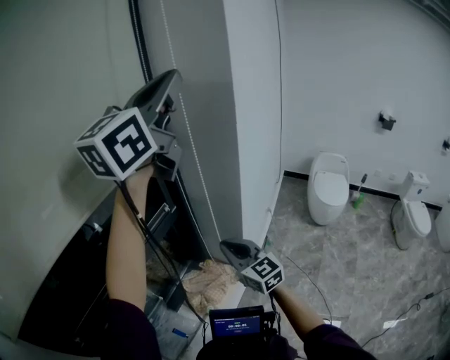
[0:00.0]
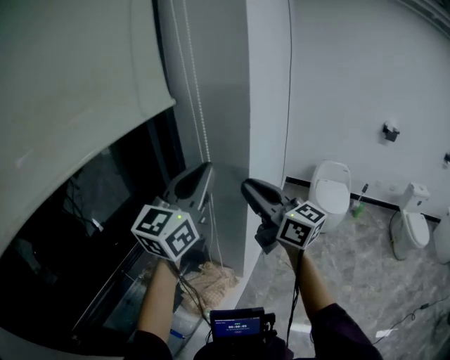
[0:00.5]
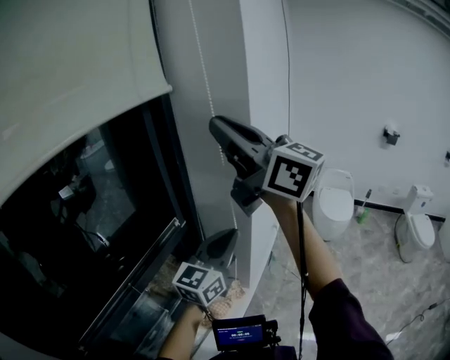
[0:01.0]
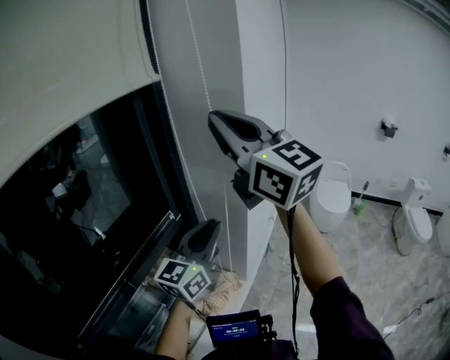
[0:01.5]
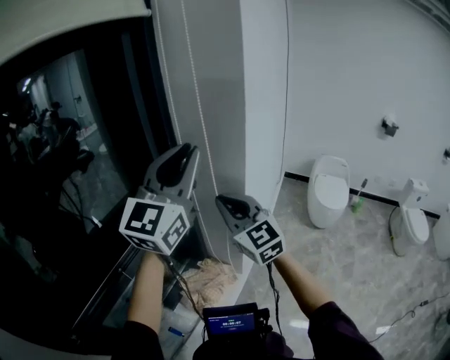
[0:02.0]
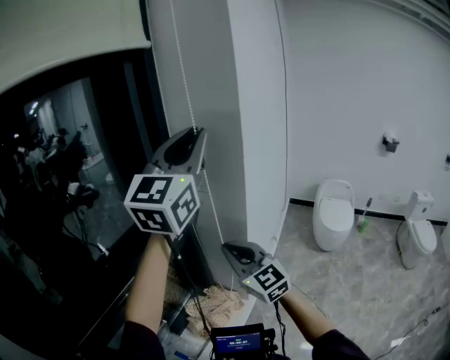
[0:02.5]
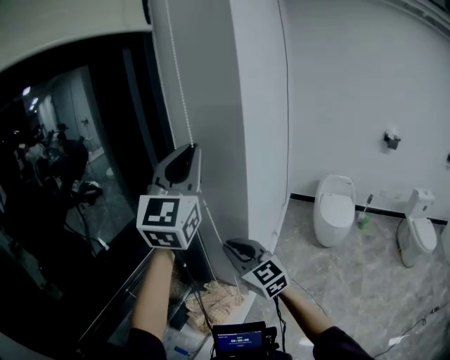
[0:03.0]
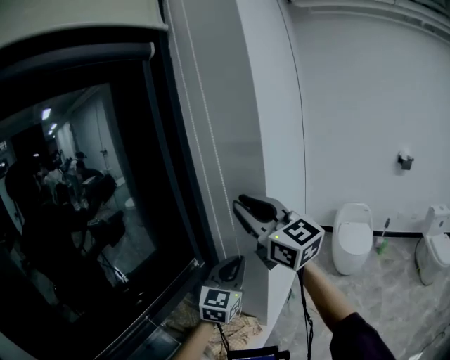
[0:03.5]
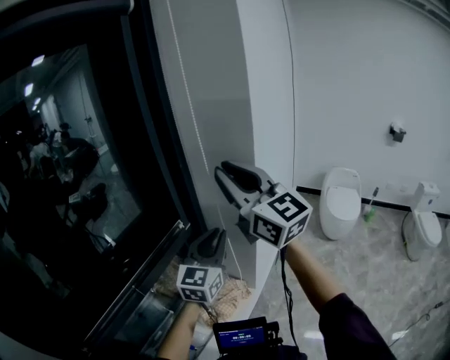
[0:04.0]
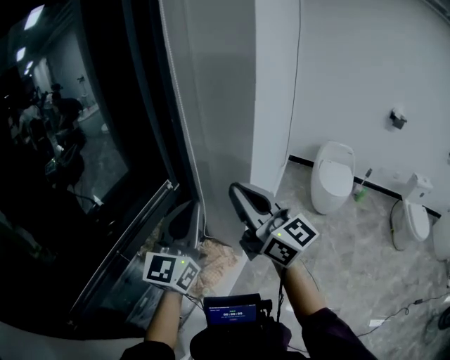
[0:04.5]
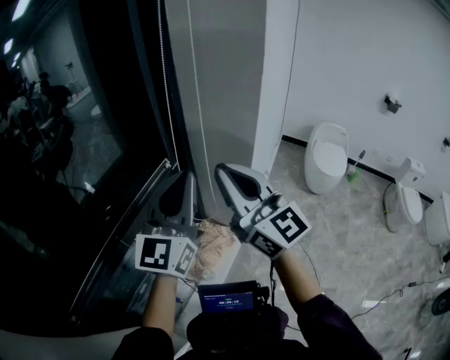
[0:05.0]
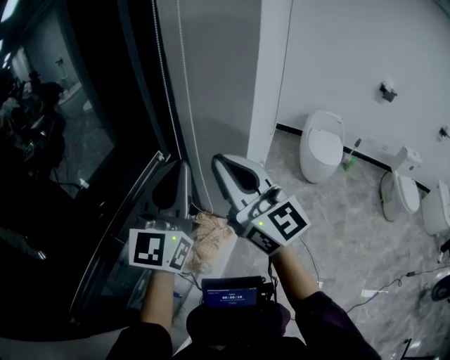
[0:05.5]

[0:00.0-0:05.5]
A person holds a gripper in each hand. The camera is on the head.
0:00.0 to 0:02.0: The right gripper travels forward by about 5 cm, and goes upward and returns, approximately 40 cm each way. The left gripper goes approximately 15 cm downward.
0:02.0 to 0:03.5: The left gripper goes some 20 cm downward, while the right gripper travels upward by roughly 15 cm.
0:03.5 to 0:05.5: The right gripper goes some 15 cm downward and backward, while the left gripper is displaced to the left and upward by approximately 10 cm.

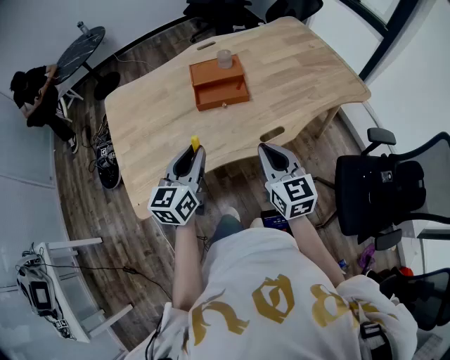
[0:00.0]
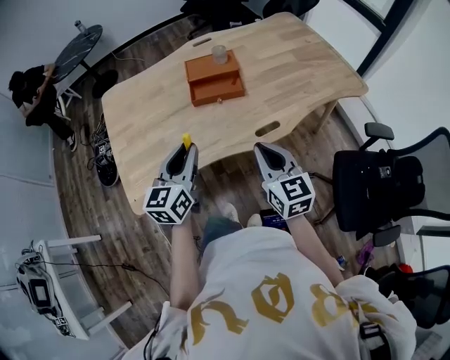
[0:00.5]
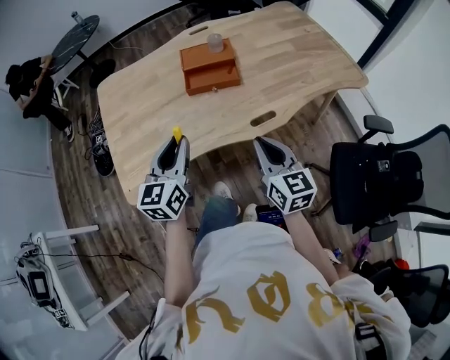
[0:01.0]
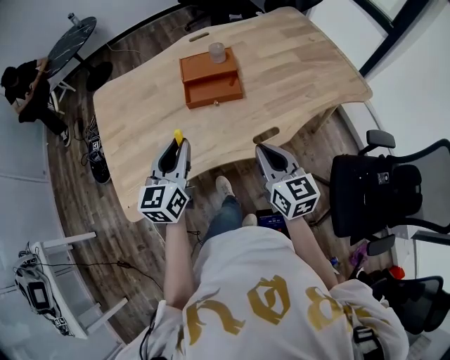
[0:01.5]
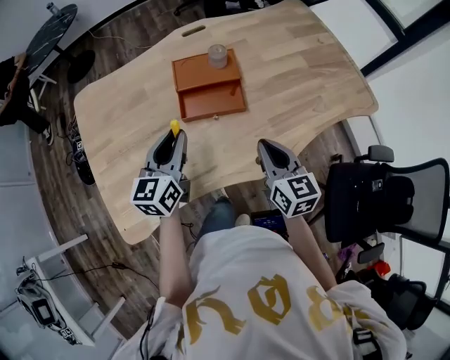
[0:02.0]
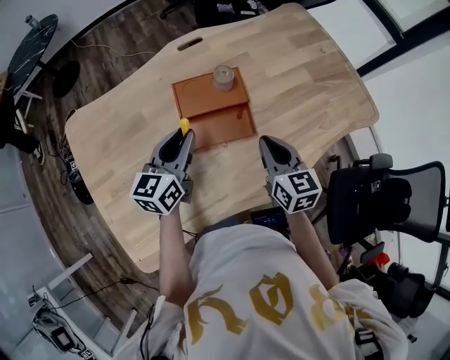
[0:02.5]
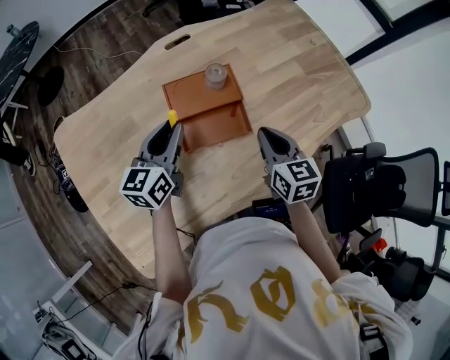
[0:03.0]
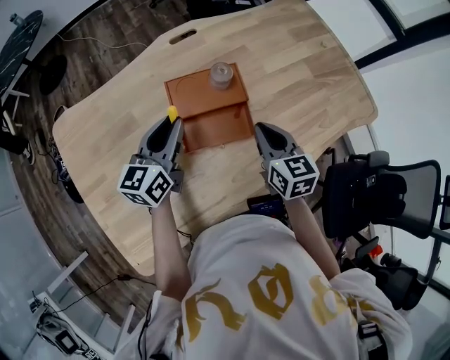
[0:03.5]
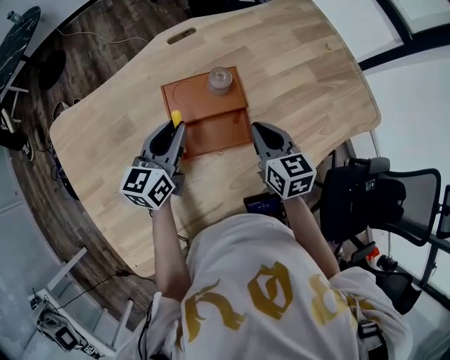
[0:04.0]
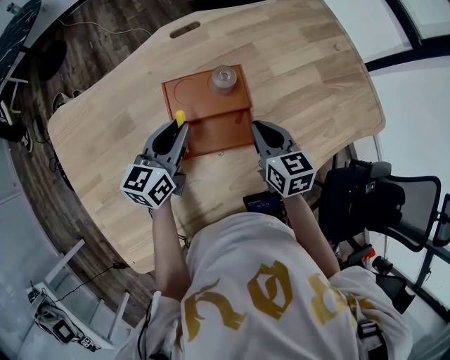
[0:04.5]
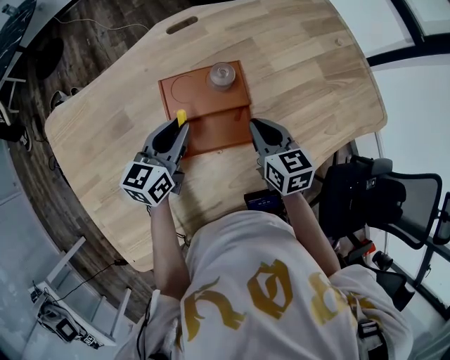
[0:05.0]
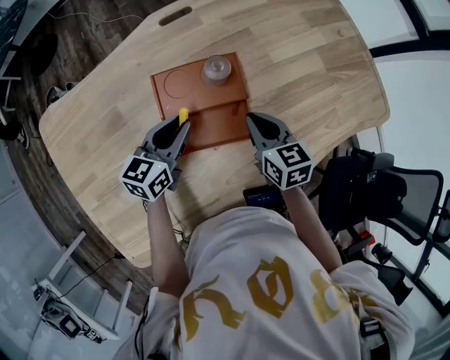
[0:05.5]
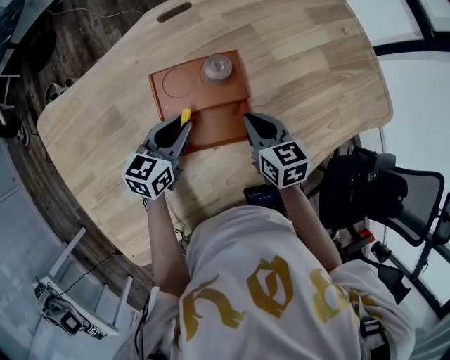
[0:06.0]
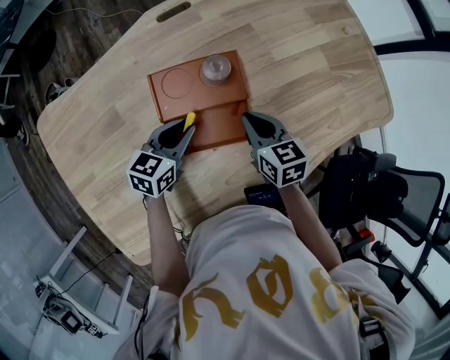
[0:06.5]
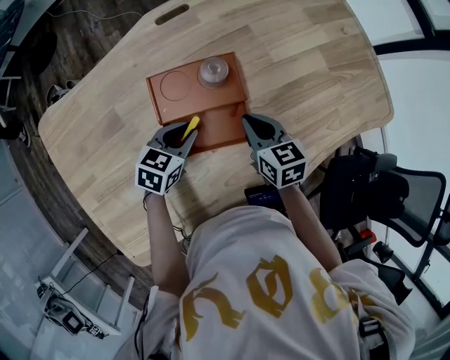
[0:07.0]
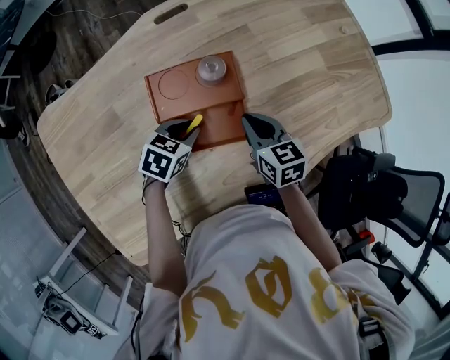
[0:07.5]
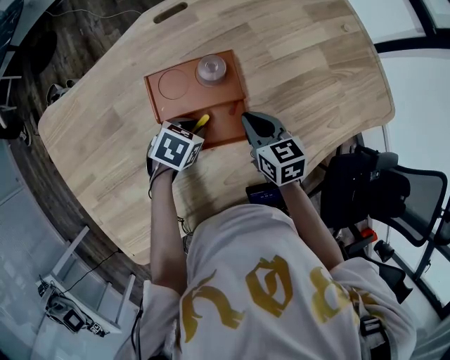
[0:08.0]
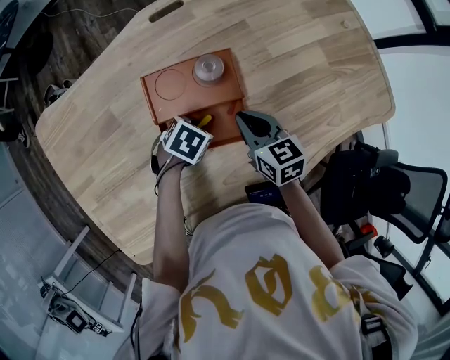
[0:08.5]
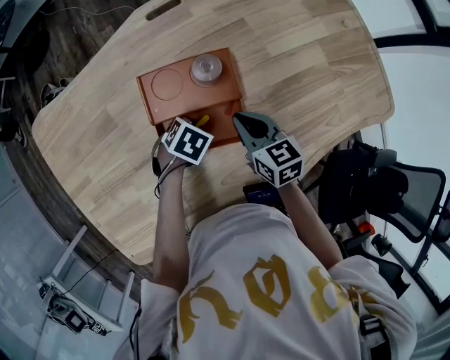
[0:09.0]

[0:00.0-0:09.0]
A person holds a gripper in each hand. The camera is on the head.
0:00.0 to 0:02.0: Both grippers travel together forward, approximately 20 cm.
0:02.0 to 0:04.5: Both grippers travel together forward, about 20 cm.
0:04.5 to 0:07.0: The right gripper goes about 5 cm downward. The left gripper shifts some 10 cm downward, and turns by about 40 degrees.
0:07.0 to 0:09.0: The left gripper travels downward by roughly 5 cm, and points its fingers roughly 30 degrees further downward.

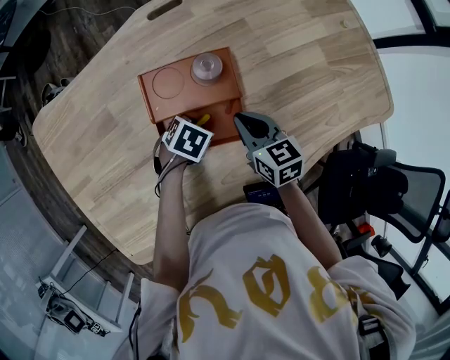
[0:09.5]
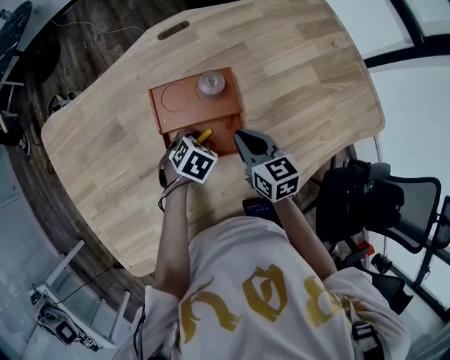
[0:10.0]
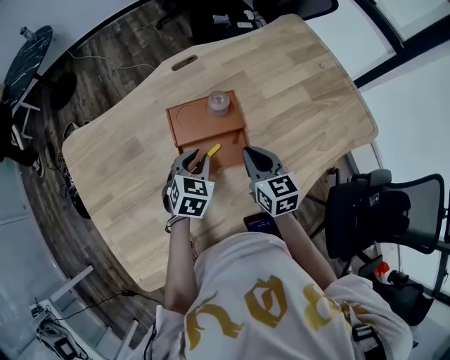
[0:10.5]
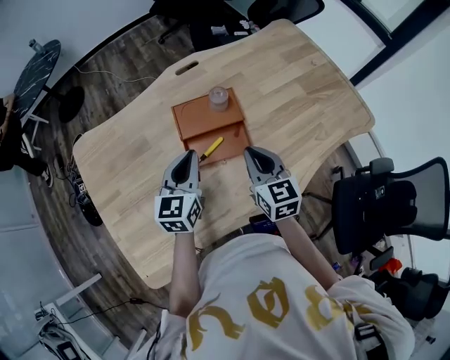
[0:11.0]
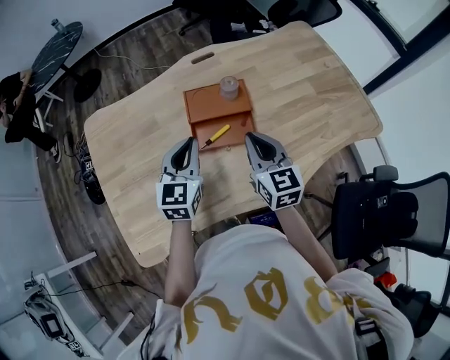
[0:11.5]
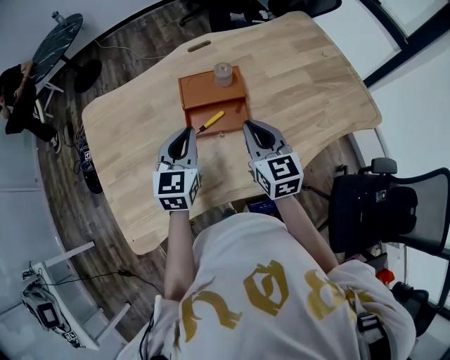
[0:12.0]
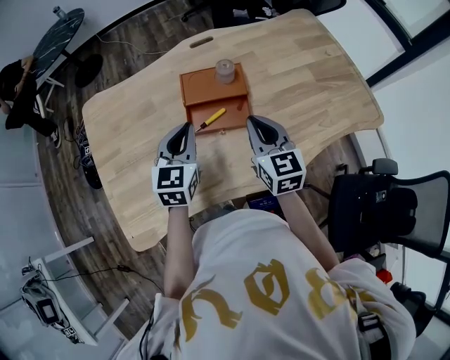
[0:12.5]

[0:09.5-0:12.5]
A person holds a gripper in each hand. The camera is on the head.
0:09.5 to 0:11.0: The left gripper shifts approximately 25 cm upward, and angles its fingers upward, by roughly 60 degrees, while the right gripper heads upward and backward, covering some 15 cm, and swivels about 20 degrees.
0:11.0 to 0:12.5: The grippers stay close to where they were, moving slightly.

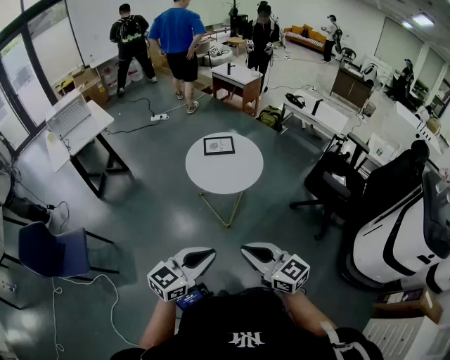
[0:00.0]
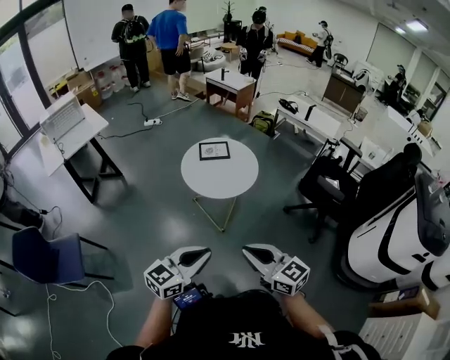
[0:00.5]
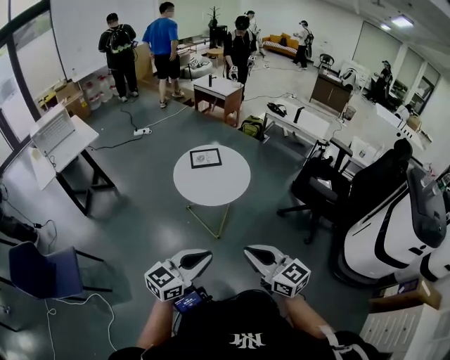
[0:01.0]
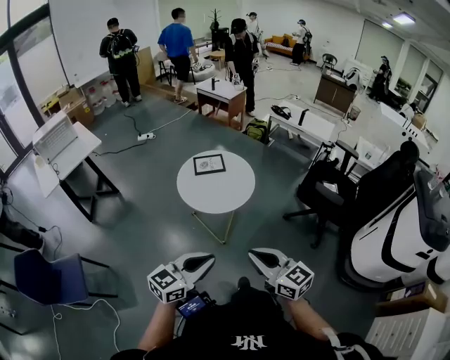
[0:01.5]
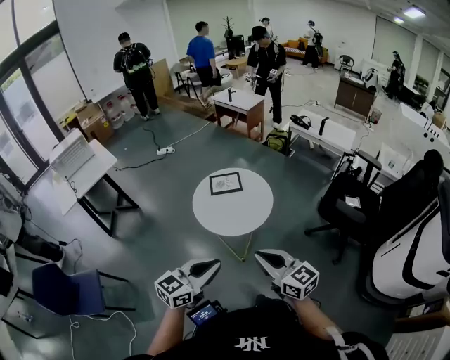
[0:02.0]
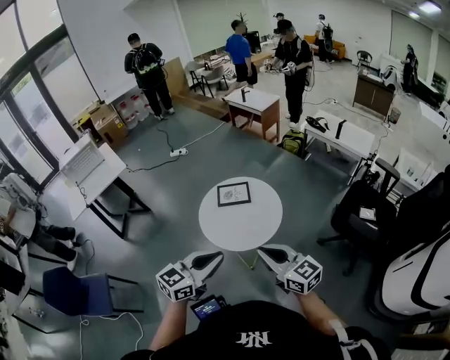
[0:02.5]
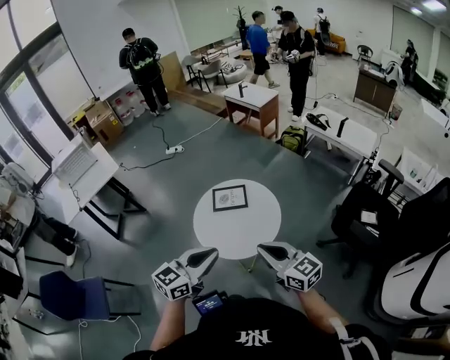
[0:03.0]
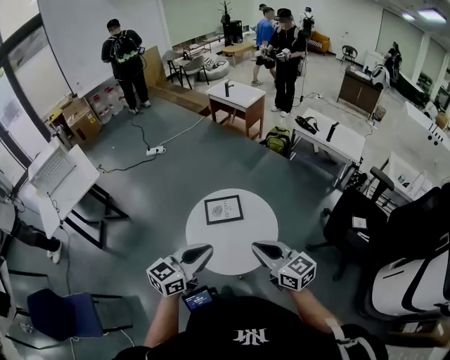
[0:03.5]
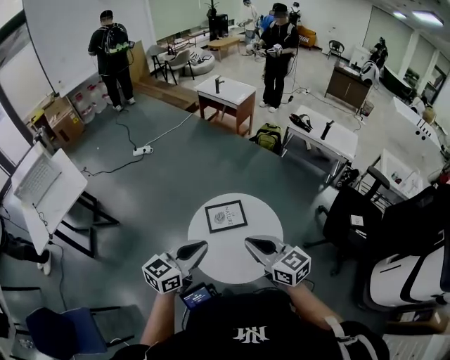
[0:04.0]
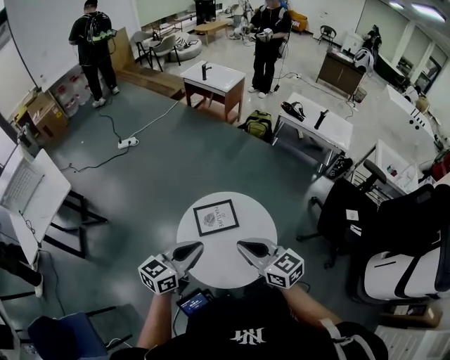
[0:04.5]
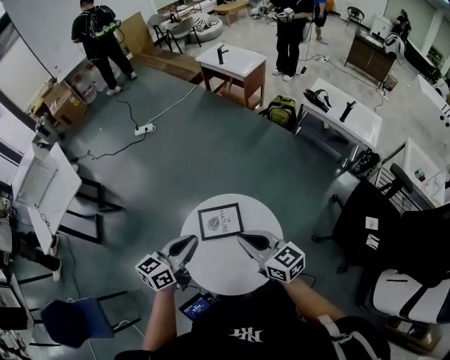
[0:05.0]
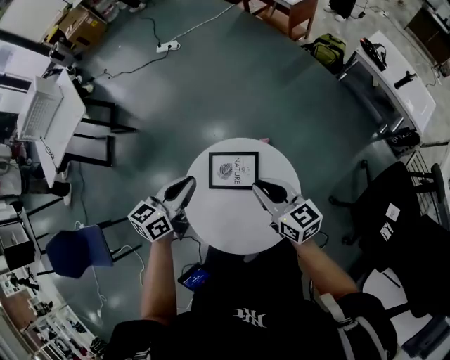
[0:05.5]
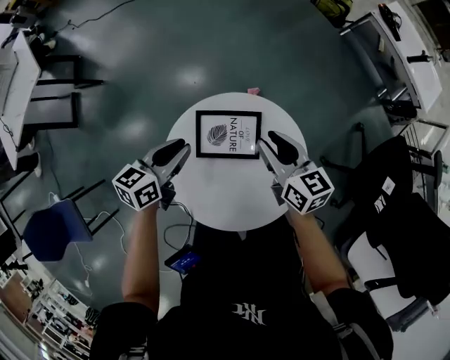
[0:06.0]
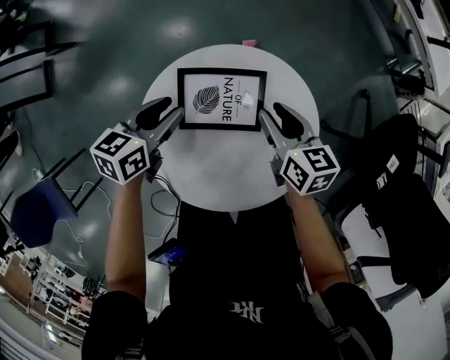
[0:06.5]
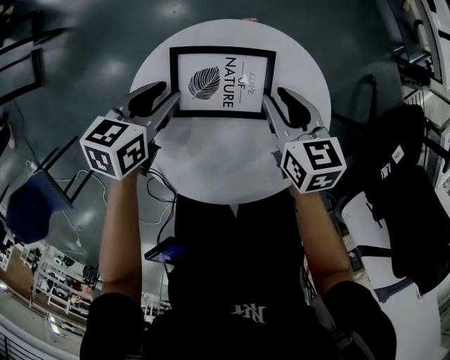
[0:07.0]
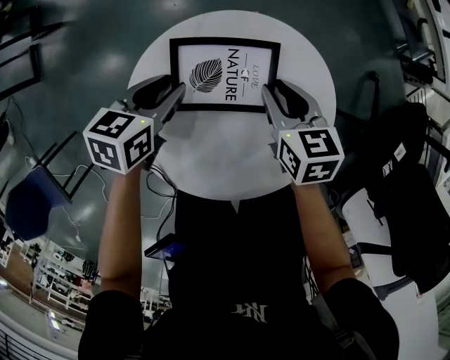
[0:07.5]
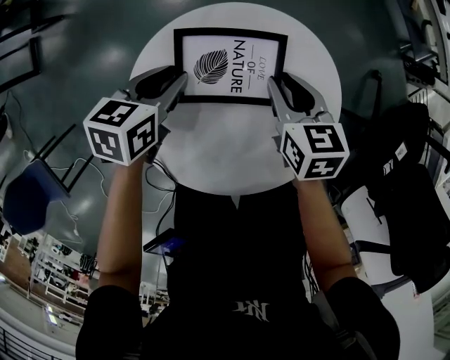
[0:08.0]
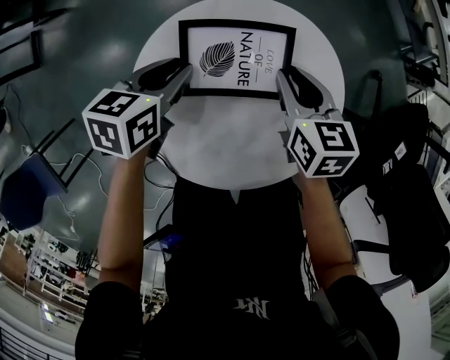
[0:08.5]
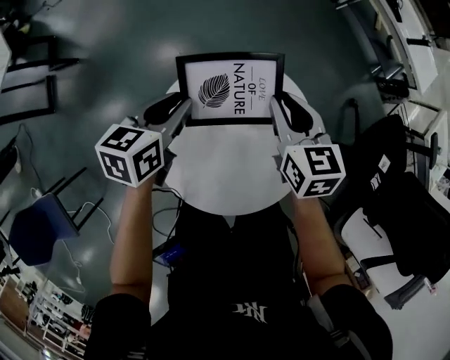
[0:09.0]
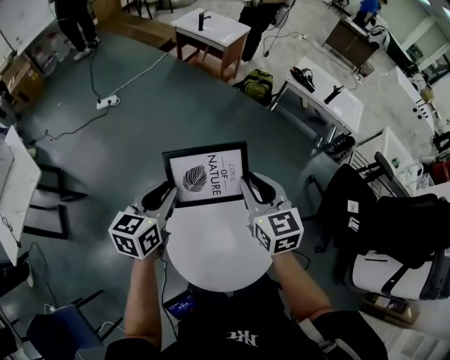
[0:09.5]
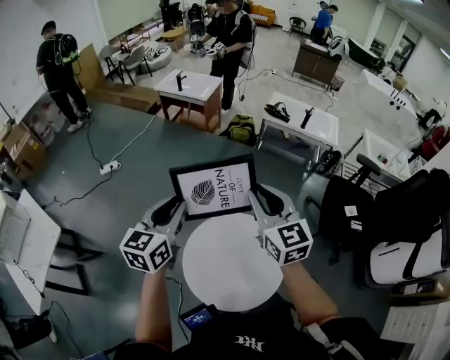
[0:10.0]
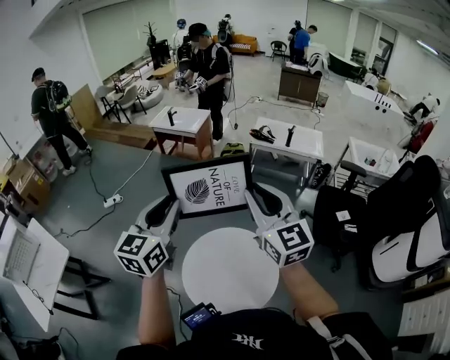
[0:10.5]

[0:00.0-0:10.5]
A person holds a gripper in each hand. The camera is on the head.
0:00.0 to 0:02.0: Both grippers move forward, roughly 15 cm.
0:02.0 to 0:04.0: The pair of grippers is taken forward, some 40 cm.
0:04.0 to 0:06.5: Both grippers move downward and forward, about 50 cm. The right gripper swivels some 40 degrees, and opens. Meanwhile the left gripper tips its fingers downward by about 30 degrees, and opens its fingers.
0:06.5 to 0:08.5: There are only small adjustments of the grippers.
0:08.5 to 0:10.5: Both grippers travel together upward, roughly 60 cm. The left gripper angles its fingers upward, by some 50 degrees, while the right gripper tilts its fingers approximately 50 degrees upward.
